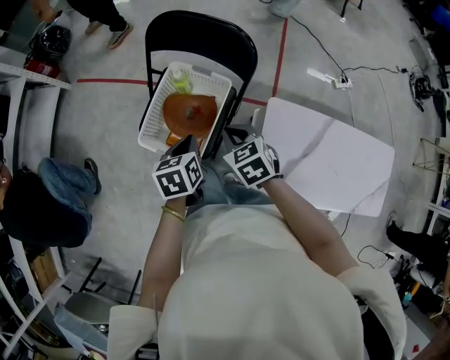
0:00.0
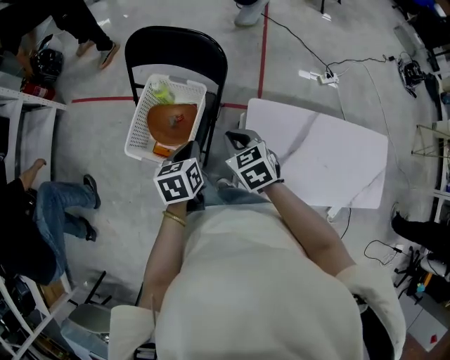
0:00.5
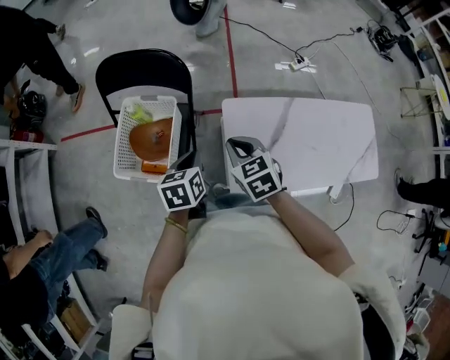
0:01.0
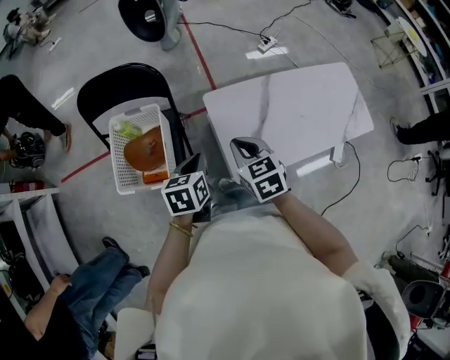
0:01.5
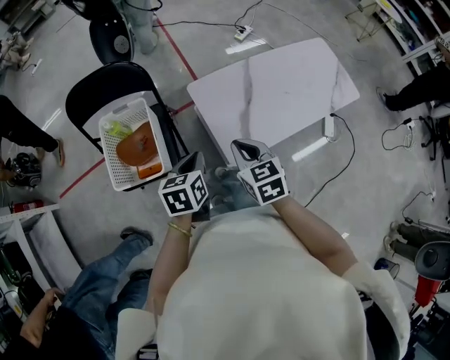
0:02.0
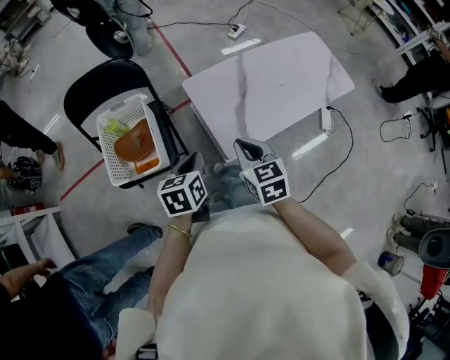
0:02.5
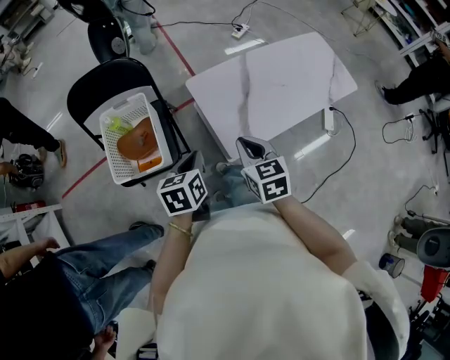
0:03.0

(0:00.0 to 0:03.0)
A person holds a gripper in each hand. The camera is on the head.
0:00.0 - 0:01.5: The right gripper moves approximately 25 cm, and turns by some 40 degrees. The left gripper changes place by approximately 20 cm, and changes its angle by some 30 degrees.
0:01.5 - 0:03.0: Both grippers move backward, approximately 10 cm.

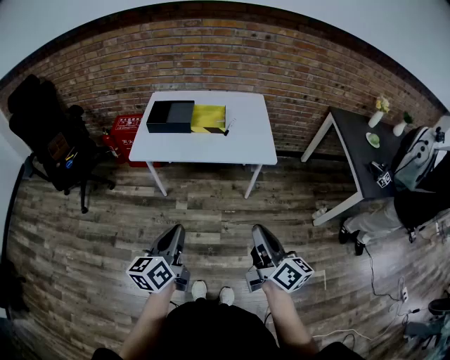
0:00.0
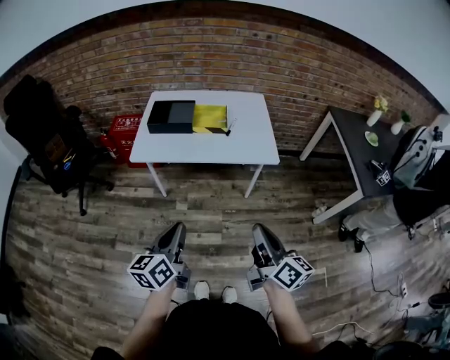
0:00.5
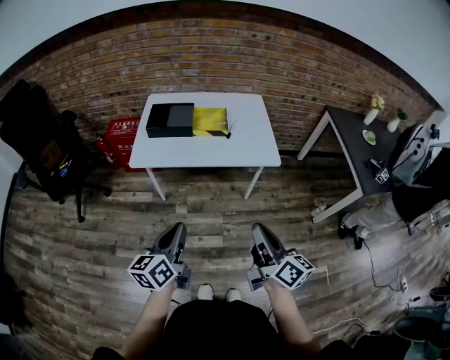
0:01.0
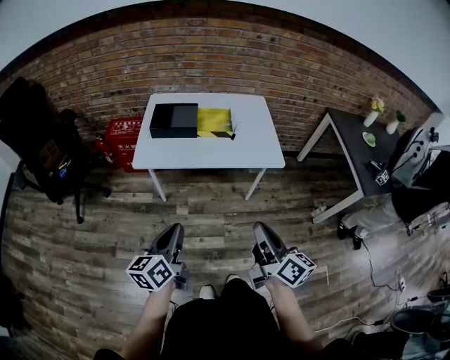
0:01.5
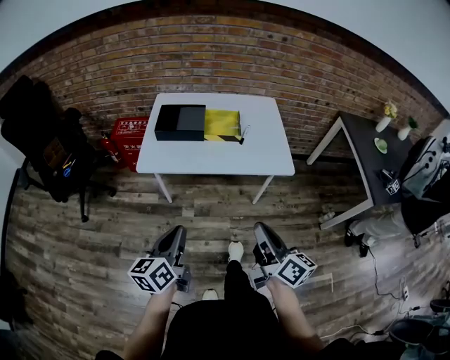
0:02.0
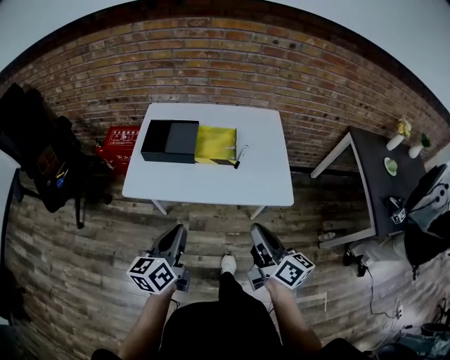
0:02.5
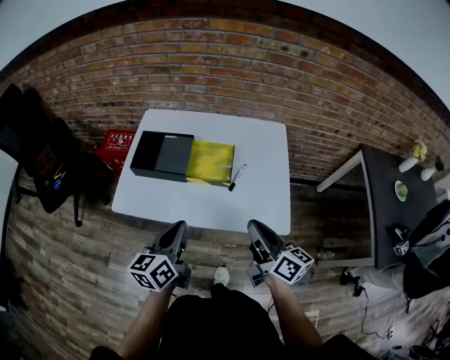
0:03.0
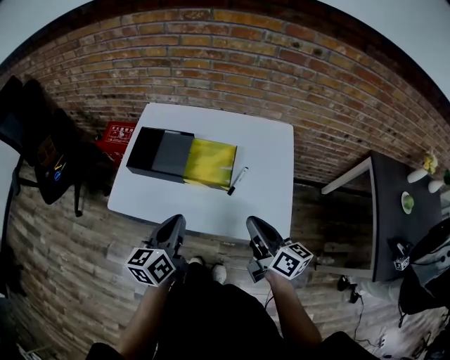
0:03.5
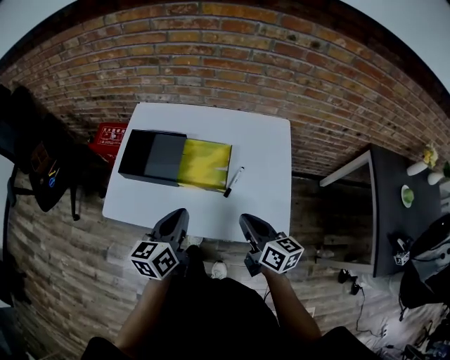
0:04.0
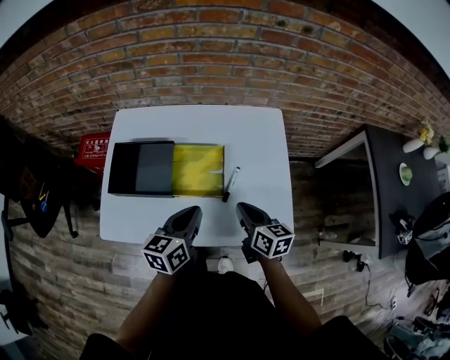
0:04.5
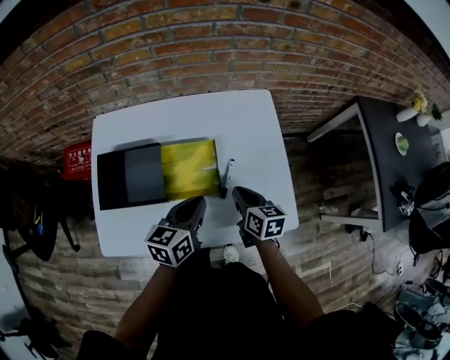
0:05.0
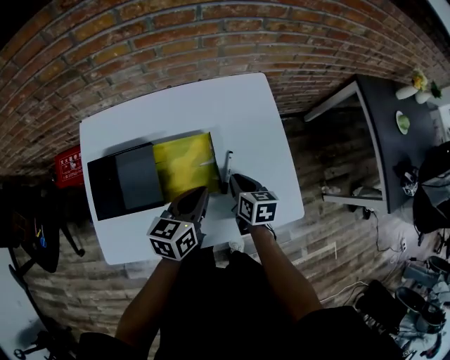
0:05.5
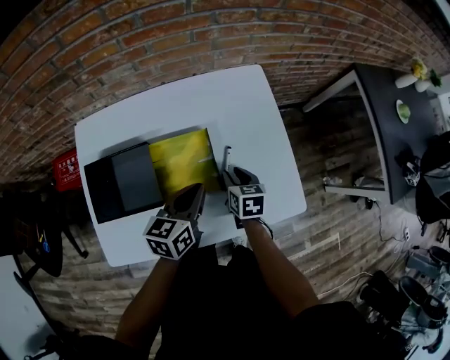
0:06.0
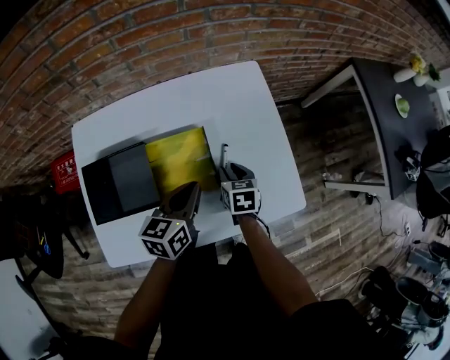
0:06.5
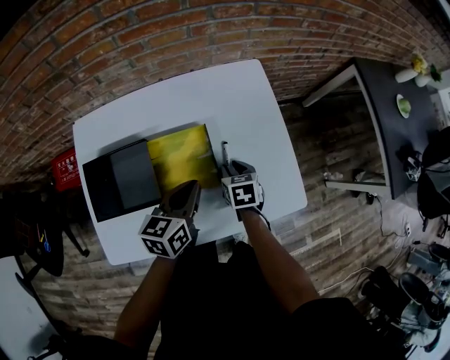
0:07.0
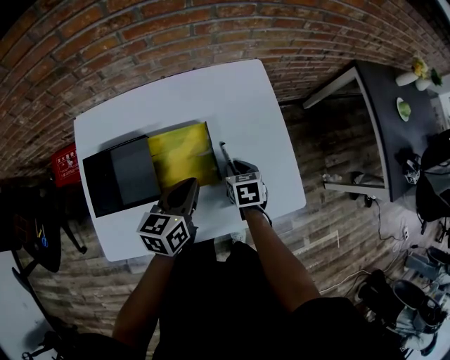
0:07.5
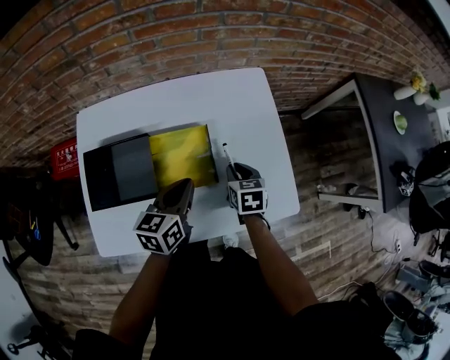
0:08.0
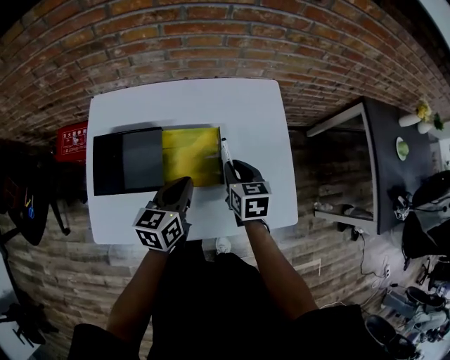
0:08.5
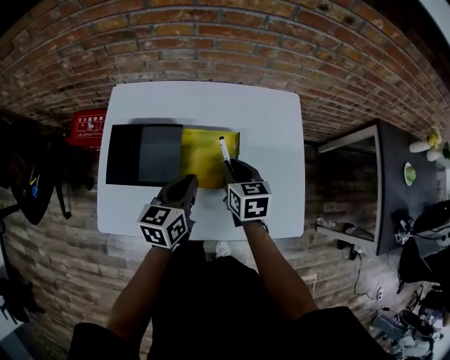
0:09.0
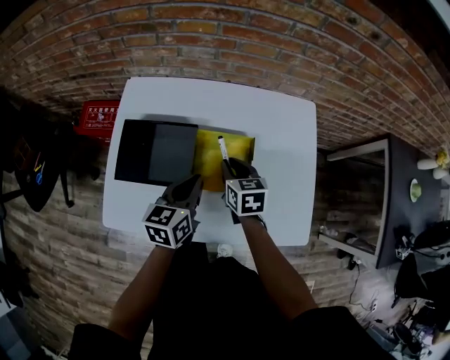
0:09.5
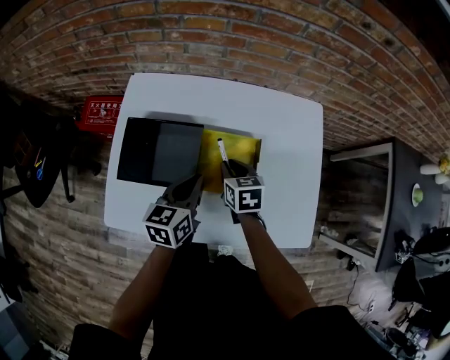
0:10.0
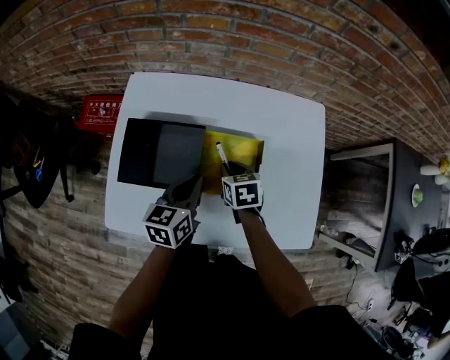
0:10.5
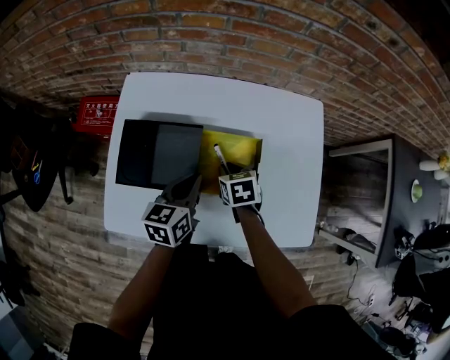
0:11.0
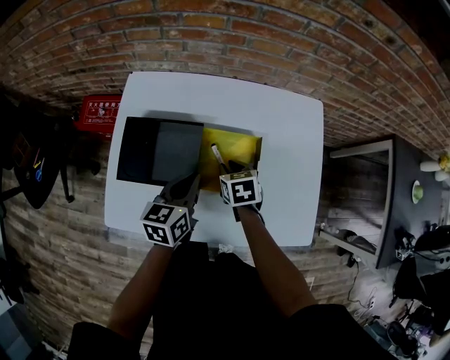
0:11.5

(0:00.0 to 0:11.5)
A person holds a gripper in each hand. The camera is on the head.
0:00.0 - 0:02.0: The right gripper moves forward and to the left, approximately 15 cm. Meanwhile the left gripper shifts approximately 10 cm to the left and forward.
0:02.0 - 0:04.0: The left gripper goes about 40 cm forward and to the right. Meanwhile the right gripper moves forward, approximately 35 cm, and changes its angle by roughly 20 degrees.
0:04.0 - 0:06.0: The right gripper heads downward, covering about 15 cm, points its fingers some 30 degrees further downward, and opens its fingers, while the left gripper changes place by about 15 cm, and turns by approximately 30 degrees.
0:06.0 - 0:07.5: The grippers move only a little.
0:07.5 - 0:09.5: The left gripper goes some 10 cm to the left; the right gripper heads to the left and upward, covering about 15 cm, and changes its angle by roughly 20 degrees.
0:09.5 - 0:11.5: The right gripper moves downward, roughly 5 cm.

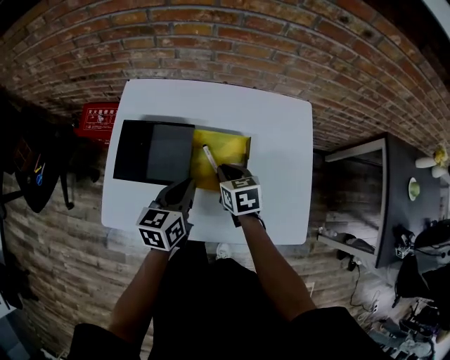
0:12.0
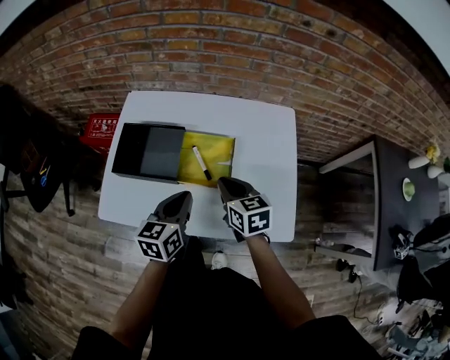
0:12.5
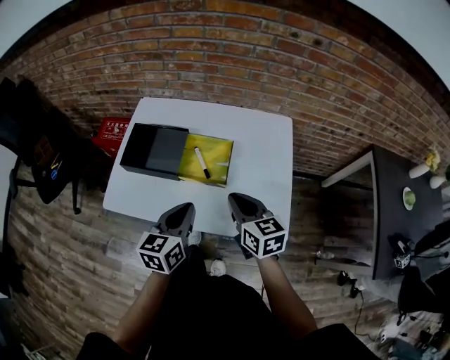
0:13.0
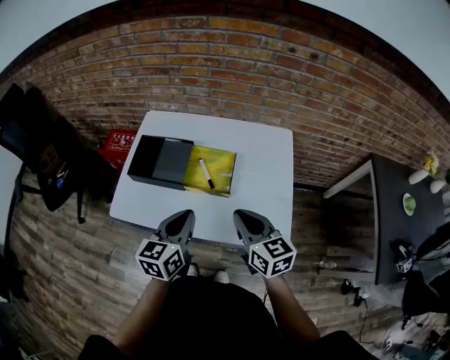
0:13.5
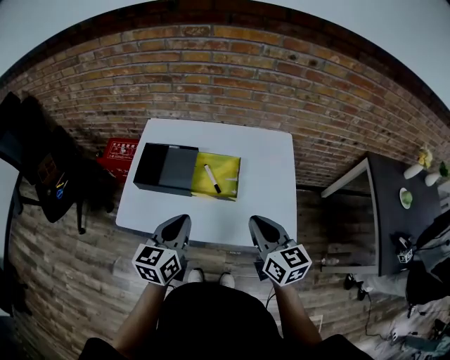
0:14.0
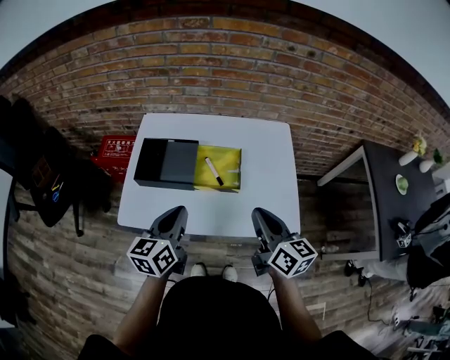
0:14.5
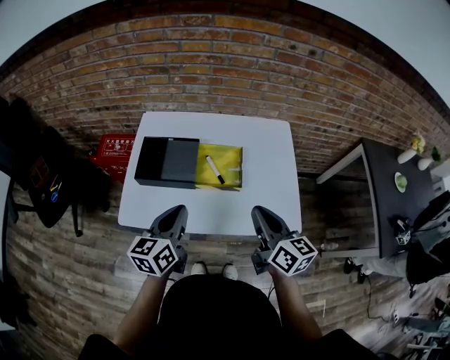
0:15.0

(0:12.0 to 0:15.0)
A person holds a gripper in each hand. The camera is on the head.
0:12.0 - 0:13.5: The right gripper shifts approximately 25 cm backward, upward and to the right, and changes its angle by approximately 30 degrees. The left gripper heads backward and upward, covering some 20 cm.
0:13.5 - 0:15.0: The right gripper turns by roughly 20 degrees. The left gripper moves to the left, about 10 cm.

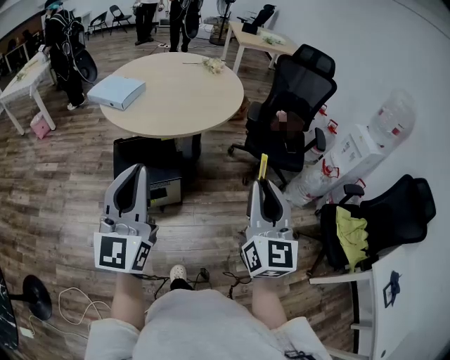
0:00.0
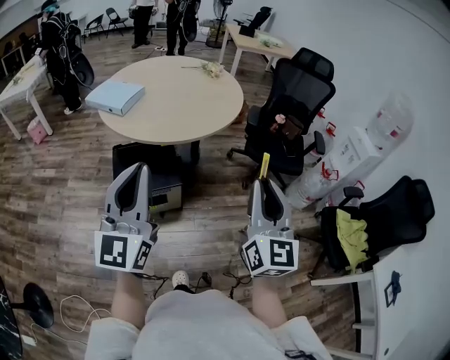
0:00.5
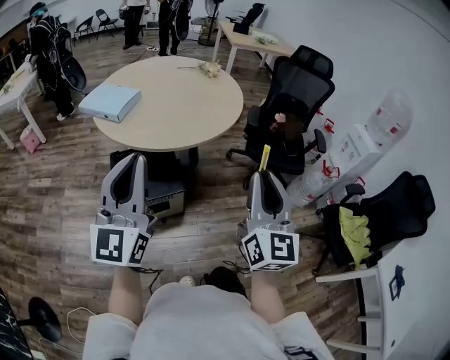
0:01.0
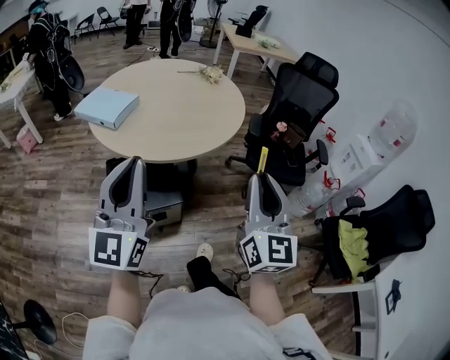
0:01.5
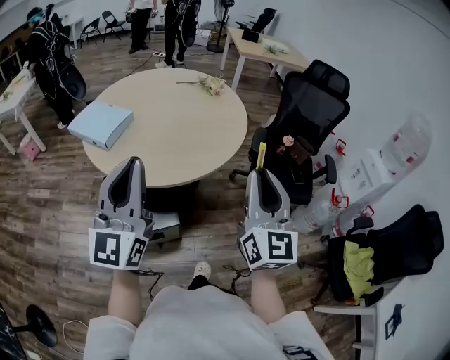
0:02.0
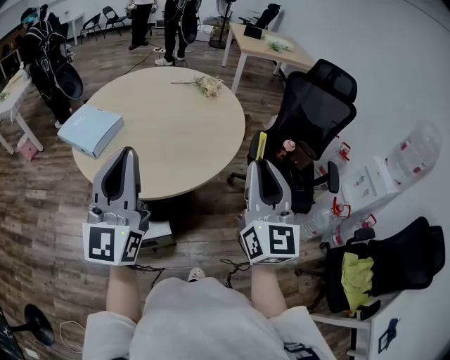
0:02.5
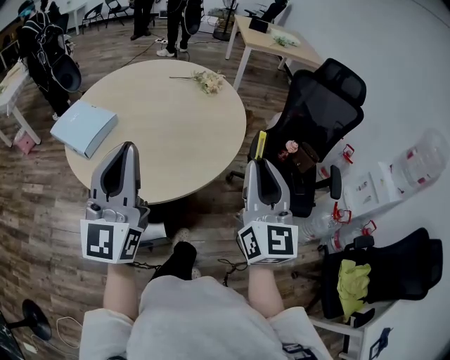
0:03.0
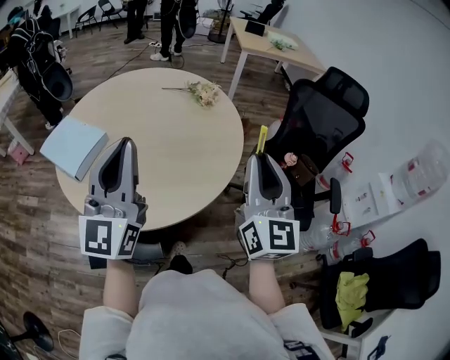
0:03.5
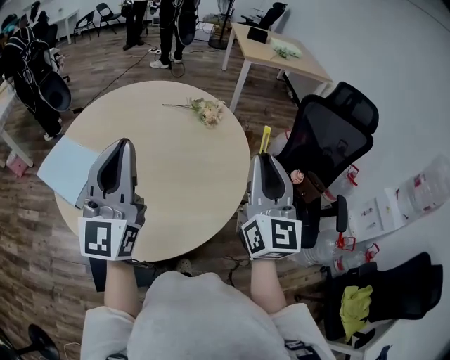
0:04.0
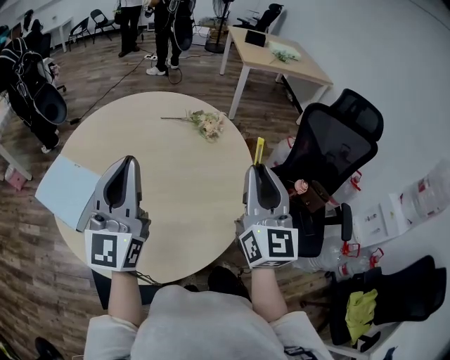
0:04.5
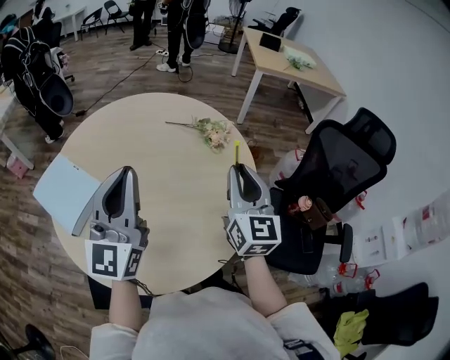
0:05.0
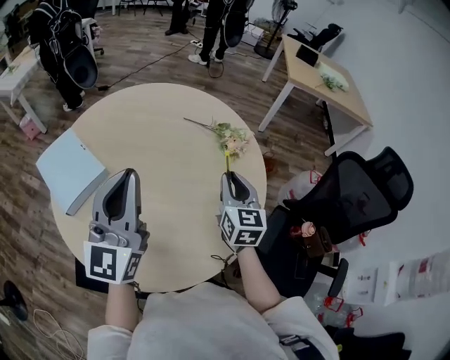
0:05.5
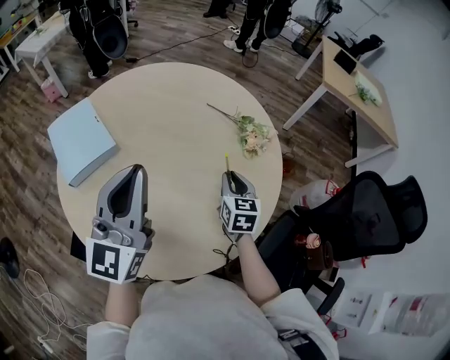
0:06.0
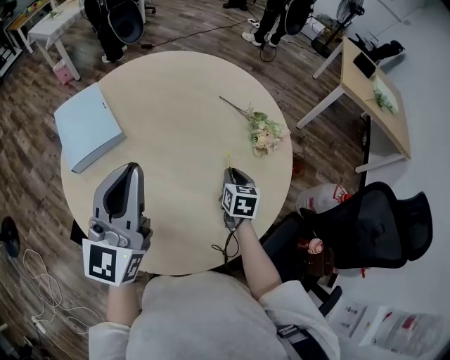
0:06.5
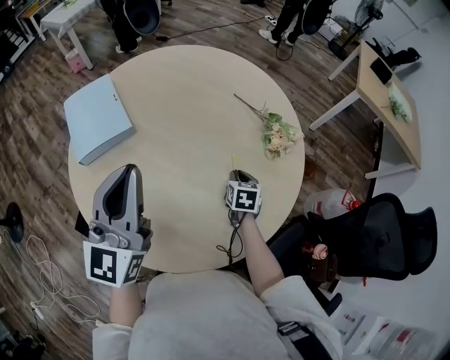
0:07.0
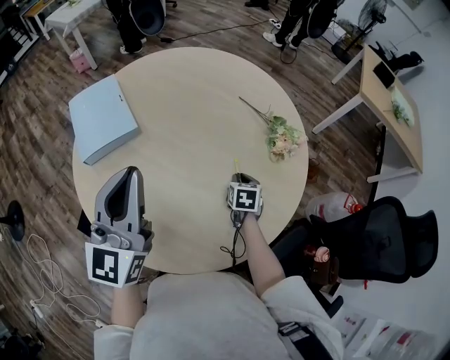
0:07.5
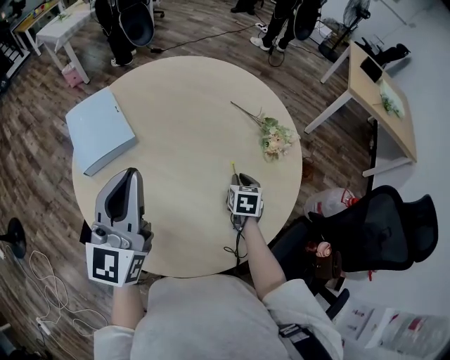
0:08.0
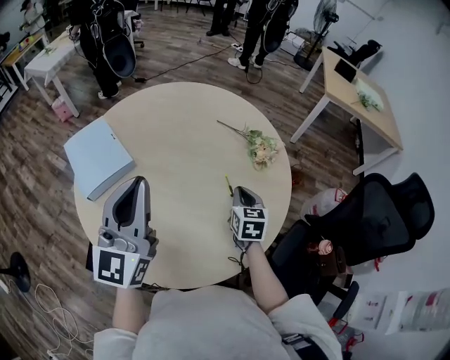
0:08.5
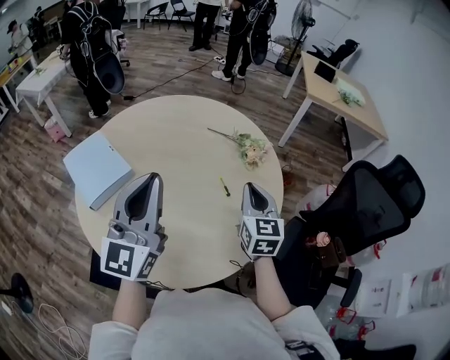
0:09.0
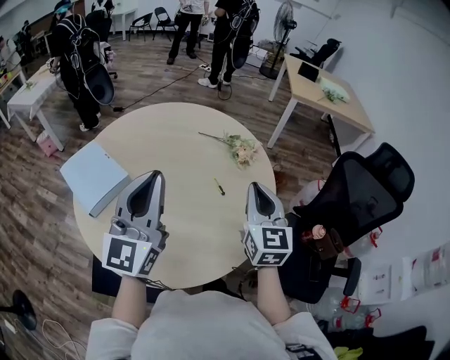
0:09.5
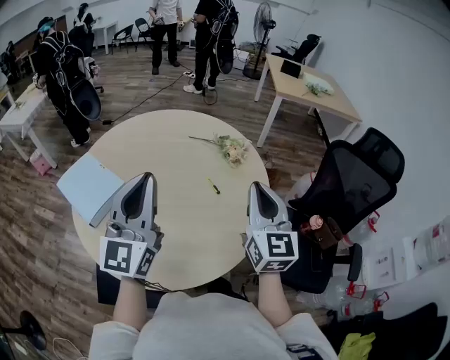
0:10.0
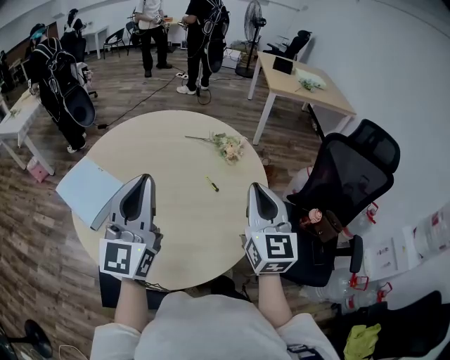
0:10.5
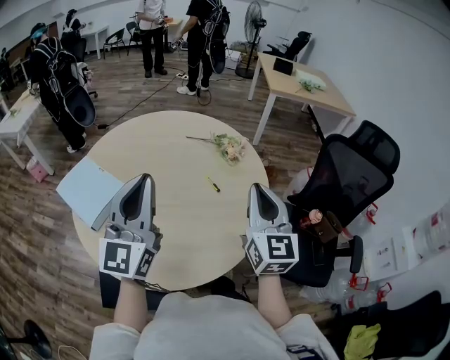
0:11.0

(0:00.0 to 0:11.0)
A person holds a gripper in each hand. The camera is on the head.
0:00.0 - 0:02.0: Both grippers move forward, about 25 cm.
0:02.0 - 0:03.5: The grippers both shift forward by approximately 25 cm.
0:03.5 - 0:05.5: The right gripper heads forward and downward, covering some 40 cm, and changes its angle by some 30 degrees. The left gripper is displaced forward by some 25 cm.
0:05.5 - 0:07.5: The left gripper changes place by about 5 cm, and turns by approximately 20 degrees. The right gripper goes approximately 25 cm downward, and tips its fingers downward by some 40 degrees.
0:07.5 - 0:09.0: The right gripper shifts about 30 cm upward and backward, and angles its fingers upward, by roughly 40 degrees; the left gripper travels upward by approximately 5 cm, and turns by some 20 degrees.
0:09.0 - 0:11.0: The right gripper moves backward and upward, approximately 15 cm.
